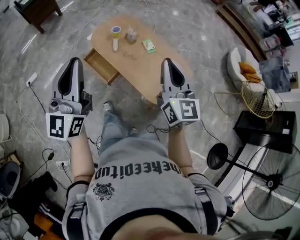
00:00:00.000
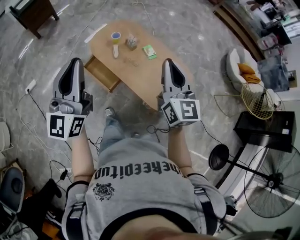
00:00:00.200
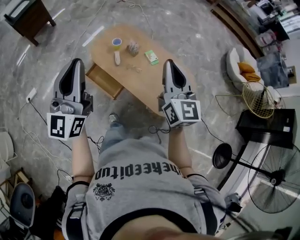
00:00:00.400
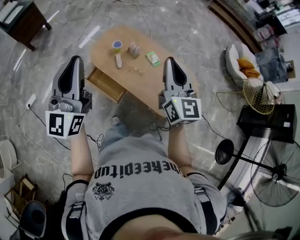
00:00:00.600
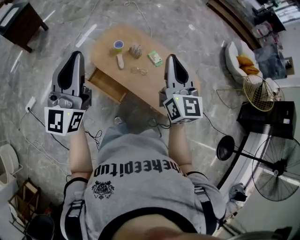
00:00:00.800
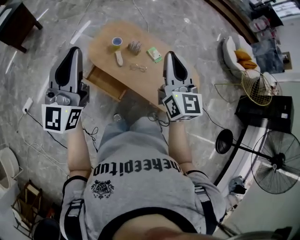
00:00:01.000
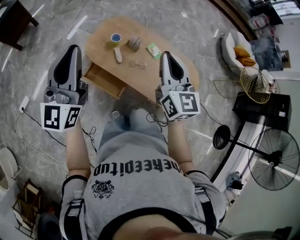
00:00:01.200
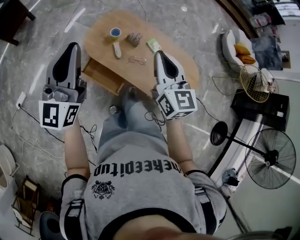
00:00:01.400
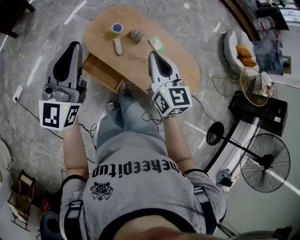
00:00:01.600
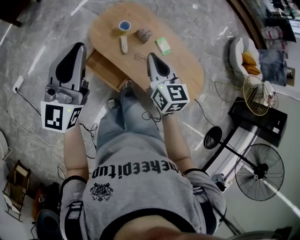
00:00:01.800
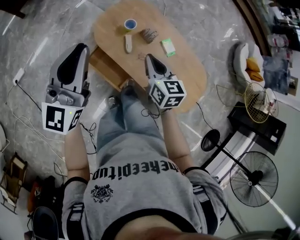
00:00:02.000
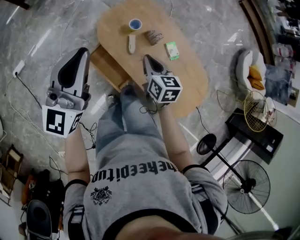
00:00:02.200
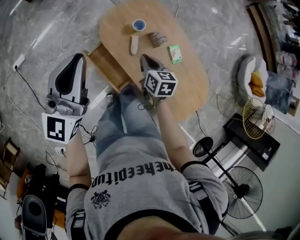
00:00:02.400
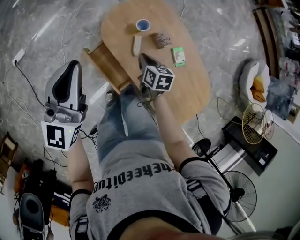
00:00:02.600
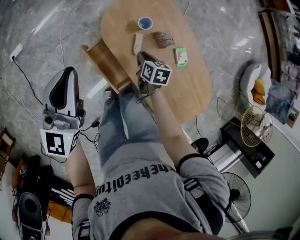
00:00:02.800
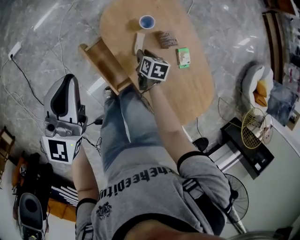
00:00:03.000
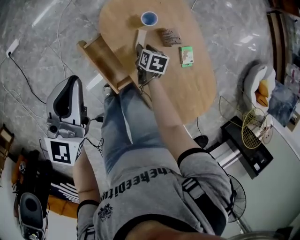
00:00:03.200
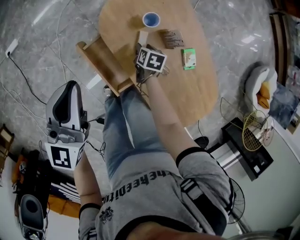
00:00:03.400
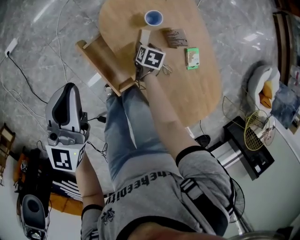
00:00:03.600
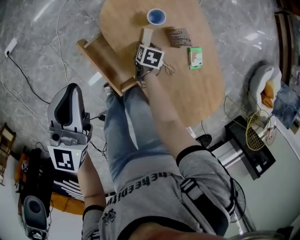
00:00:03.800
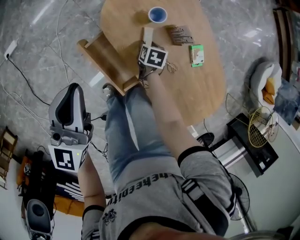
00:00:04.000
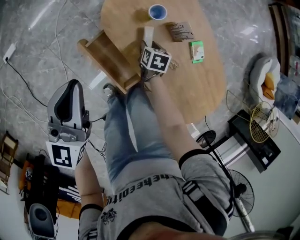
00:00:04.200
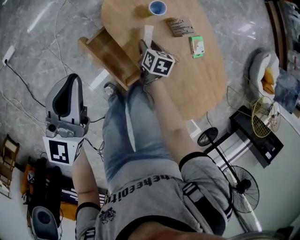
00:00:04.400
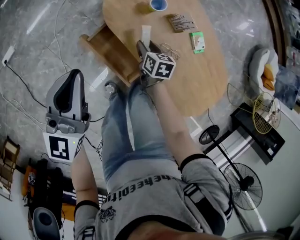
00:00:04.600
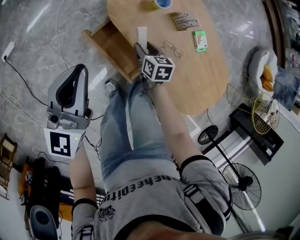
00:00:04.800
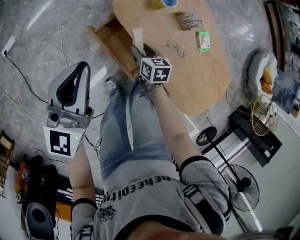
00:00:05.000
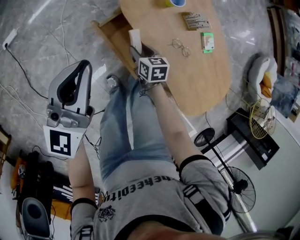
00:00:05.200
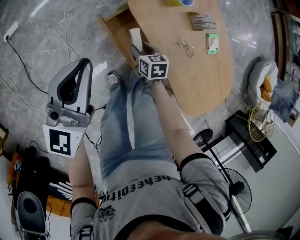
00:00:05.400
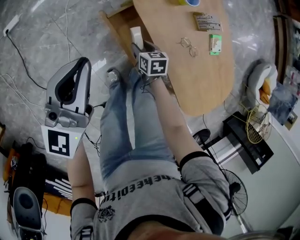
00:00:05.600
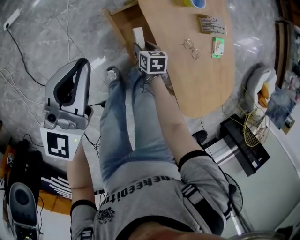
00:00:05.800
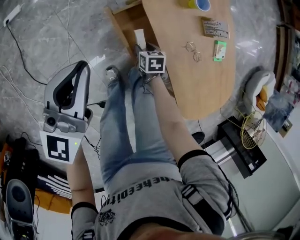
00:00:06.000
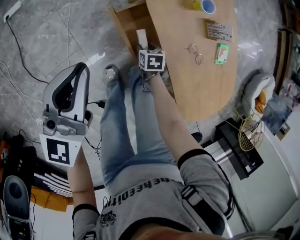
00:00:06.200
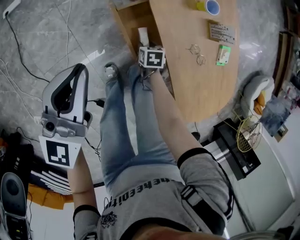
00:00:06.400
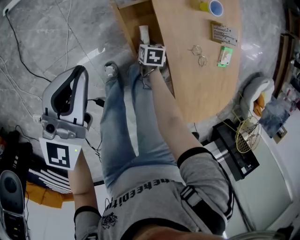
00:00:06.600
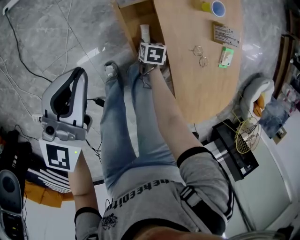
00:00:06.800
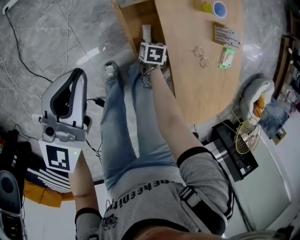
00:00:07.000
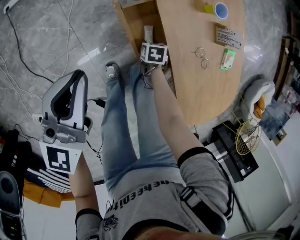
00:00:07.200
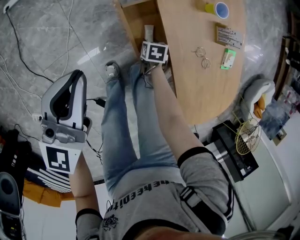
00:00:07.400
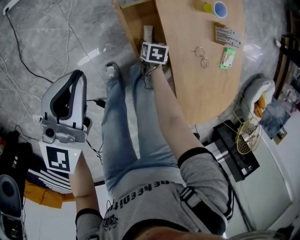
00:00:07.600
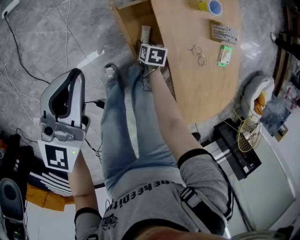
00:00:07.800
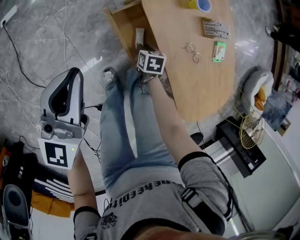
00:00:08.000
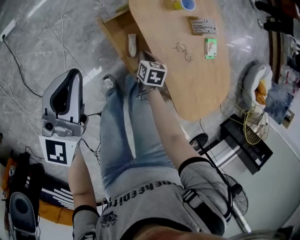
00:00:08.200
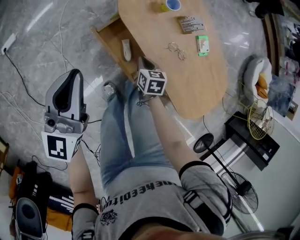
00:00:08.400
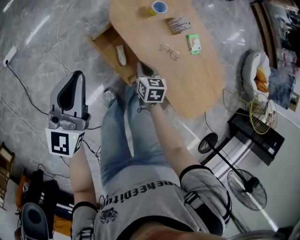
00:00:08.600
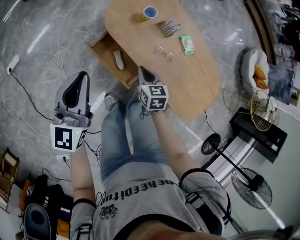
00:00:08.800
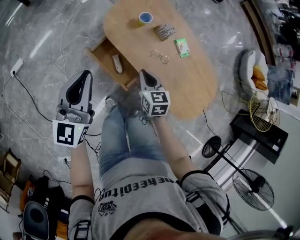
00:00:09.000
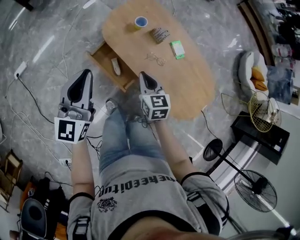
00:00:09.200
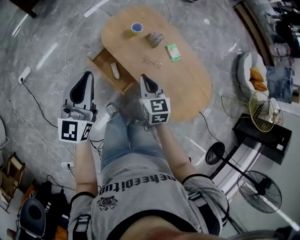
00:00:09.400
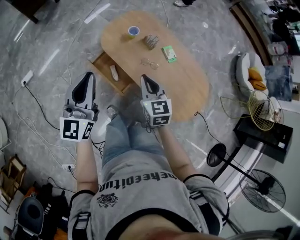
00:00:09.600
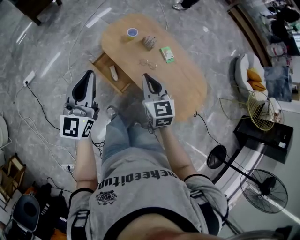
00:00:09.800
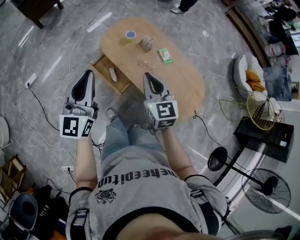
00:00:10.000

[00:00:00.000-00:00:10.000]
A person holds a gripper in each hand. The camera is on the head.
00:00:00.000 to 00:00:01.400: The two grippers go approximately 30 cm forward and to the left.
00:00:01.400 to 00:00:02.800: The right gripper goes about 40 cm downward and forward, and tilts its fingers about 40 degrees downward. The left gripper shifts some 20 cm downward and forward, and turns by about 20 degrees.
00:00:02.800 to 00:00:04.200: The two grippers go some 15 cm downward. The right gripper opens its fingers.
00:00:04.200 to 00:00:05.800: The grippers both shift to the left and backward by some 15 cm. The right gripper rotates approximately 20 degrees.
00:00:05.800 to 00:00:07.200: The left gripper changes place by about 5 cm. The right gripper moves downward, about 10 cm.
00:00:07.200 to 00:00:08.600: The left gripper is displaced upward by some 10 cm. The right gripper travels upward by some 25 cm, swivels approximately 30 degrees, and closes its fingers.
00:00:08.600 to 00:00:10.000: The left gripper heads upward, to the right and backward, covering roughly 25 cm; the right gripper moves upward, roughly 35 cm, and tips its fingers upward by some 30 degrees.

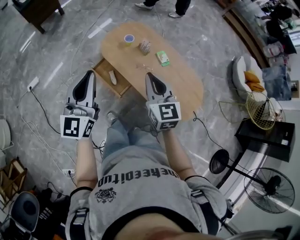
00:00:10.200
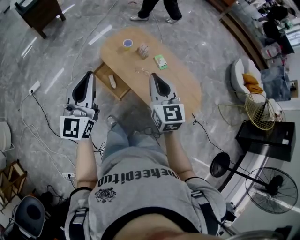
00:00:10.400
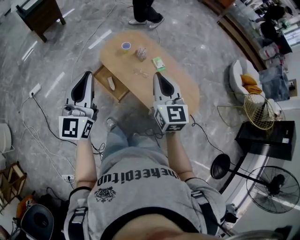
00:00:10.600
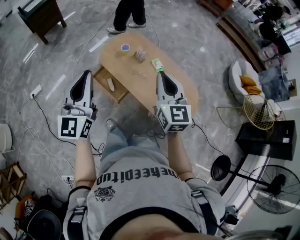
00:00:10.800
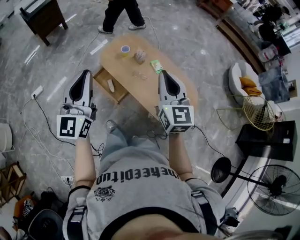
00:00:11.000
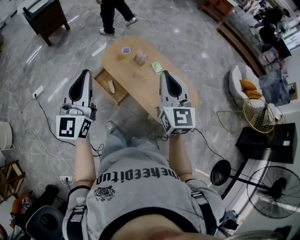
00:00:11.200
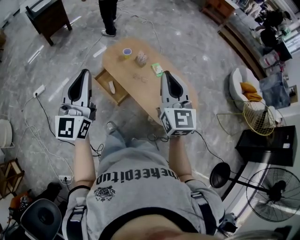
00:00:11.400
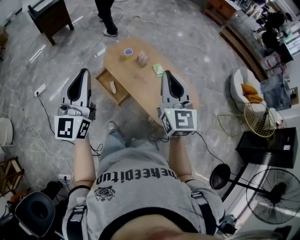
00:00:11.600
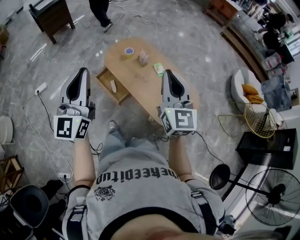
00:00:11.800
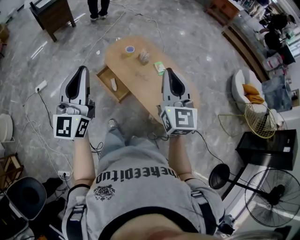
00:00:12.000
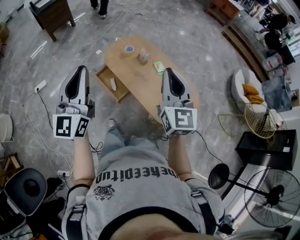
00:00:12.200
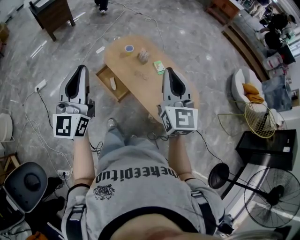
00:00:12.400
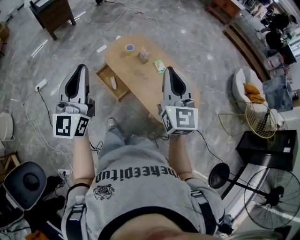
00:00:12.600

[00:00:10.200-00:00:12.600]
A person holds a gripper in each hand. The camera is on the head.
00:00:10.200 to 00:00:11.400: The left gripper heads upward and backward, covering approximately 15 cm; the right gripper moves upward, to the right and backward, about 20 cm.
00:00:11.400 to 00:00:12.600: The grippers make only small movements.

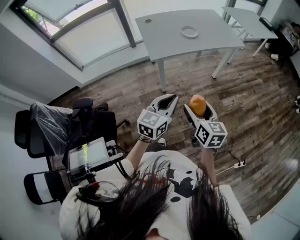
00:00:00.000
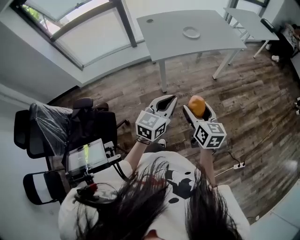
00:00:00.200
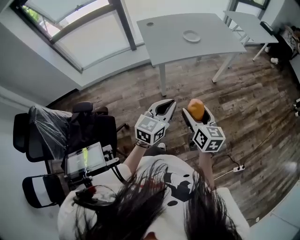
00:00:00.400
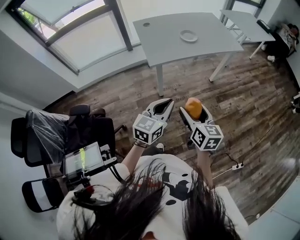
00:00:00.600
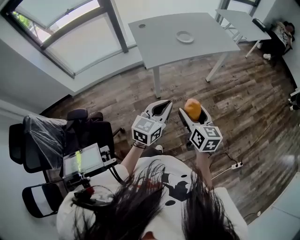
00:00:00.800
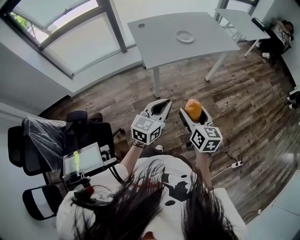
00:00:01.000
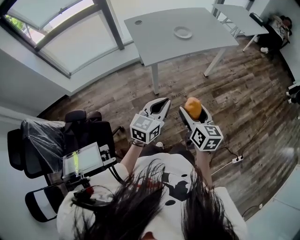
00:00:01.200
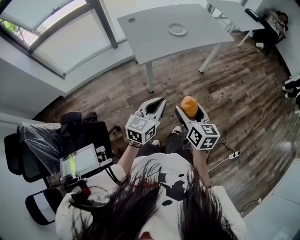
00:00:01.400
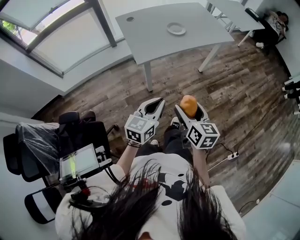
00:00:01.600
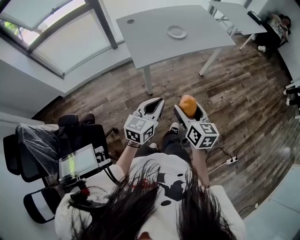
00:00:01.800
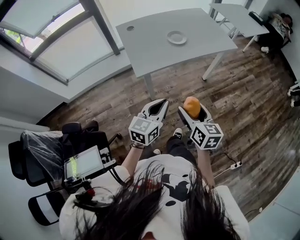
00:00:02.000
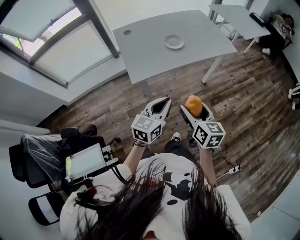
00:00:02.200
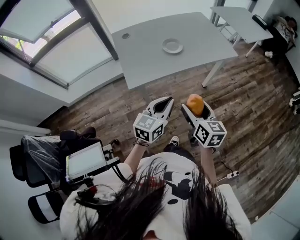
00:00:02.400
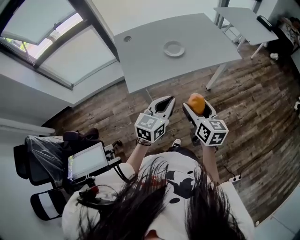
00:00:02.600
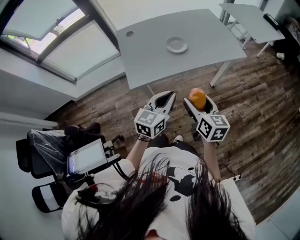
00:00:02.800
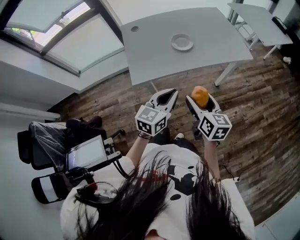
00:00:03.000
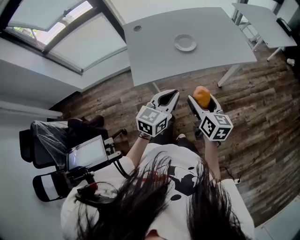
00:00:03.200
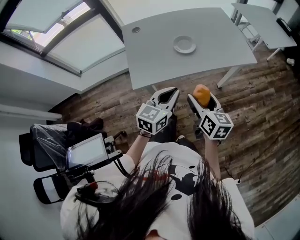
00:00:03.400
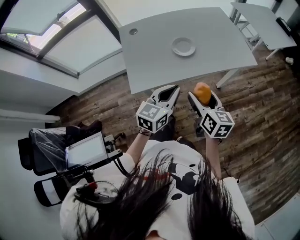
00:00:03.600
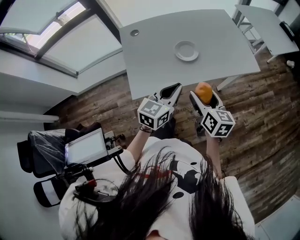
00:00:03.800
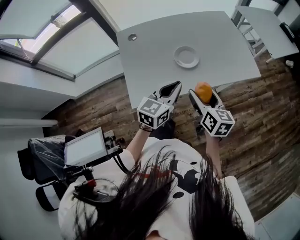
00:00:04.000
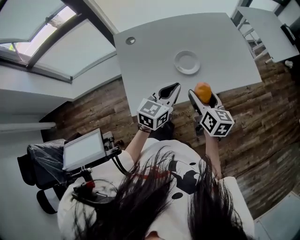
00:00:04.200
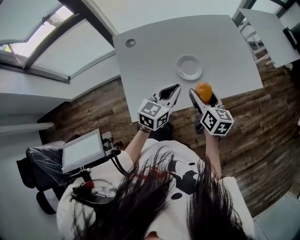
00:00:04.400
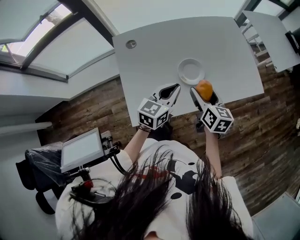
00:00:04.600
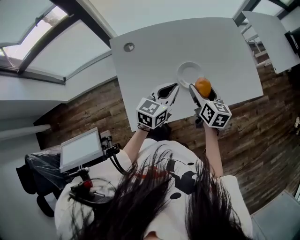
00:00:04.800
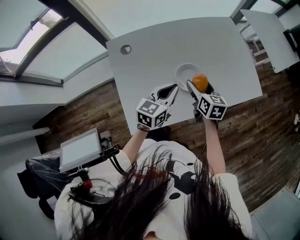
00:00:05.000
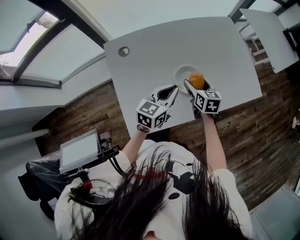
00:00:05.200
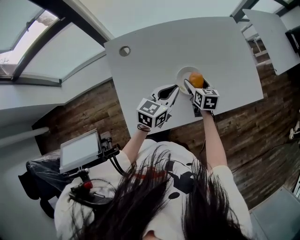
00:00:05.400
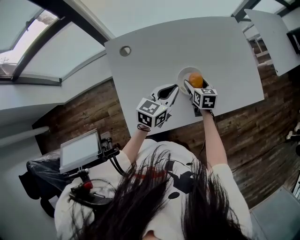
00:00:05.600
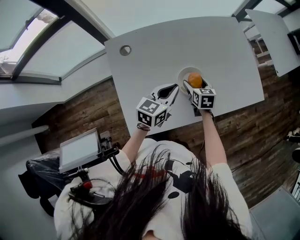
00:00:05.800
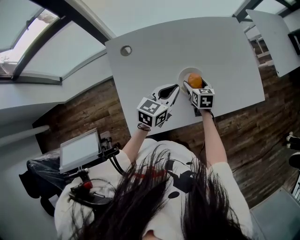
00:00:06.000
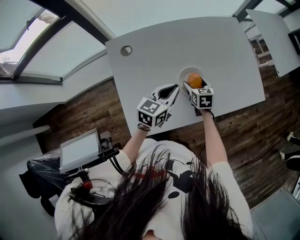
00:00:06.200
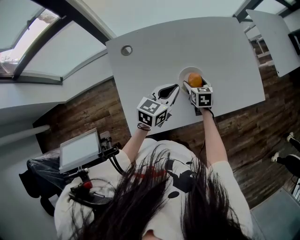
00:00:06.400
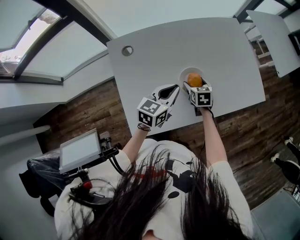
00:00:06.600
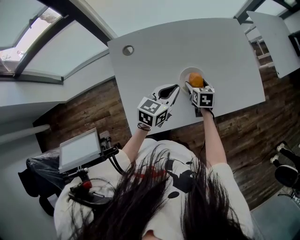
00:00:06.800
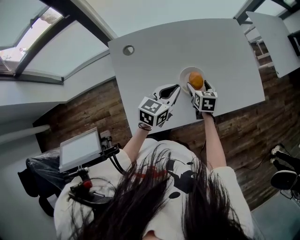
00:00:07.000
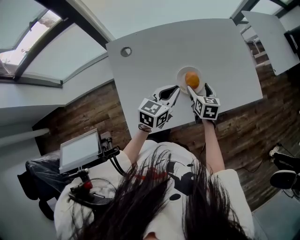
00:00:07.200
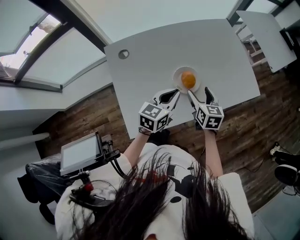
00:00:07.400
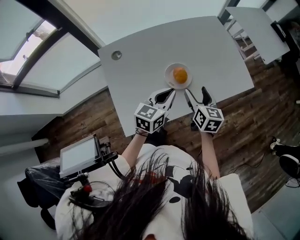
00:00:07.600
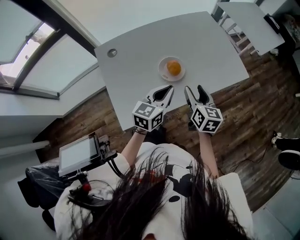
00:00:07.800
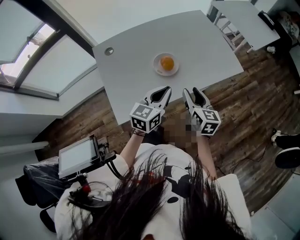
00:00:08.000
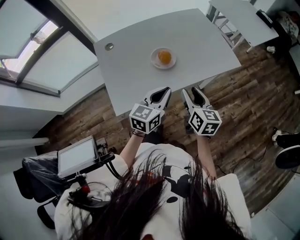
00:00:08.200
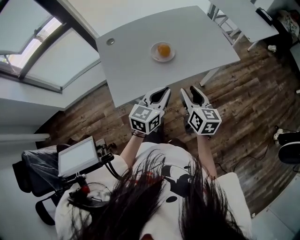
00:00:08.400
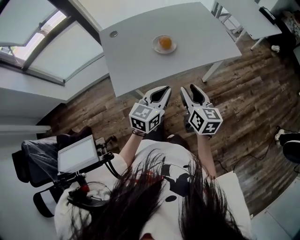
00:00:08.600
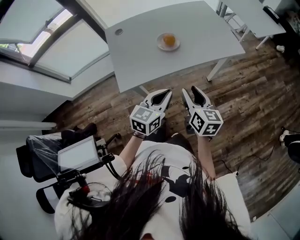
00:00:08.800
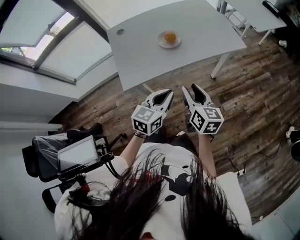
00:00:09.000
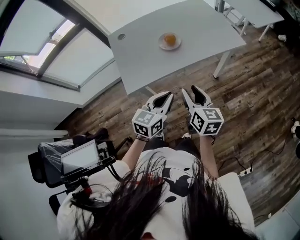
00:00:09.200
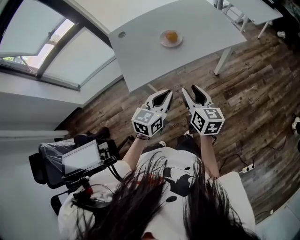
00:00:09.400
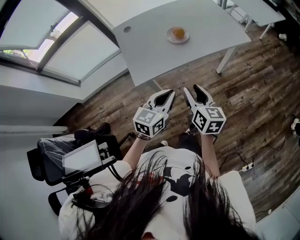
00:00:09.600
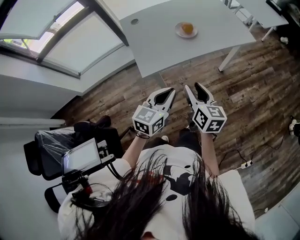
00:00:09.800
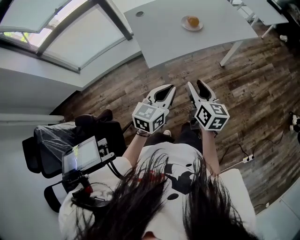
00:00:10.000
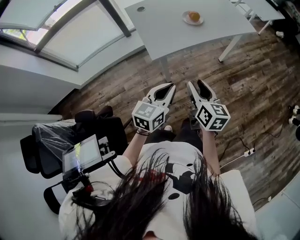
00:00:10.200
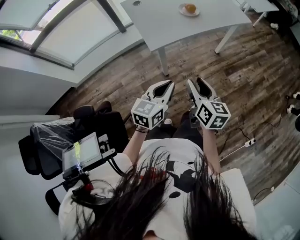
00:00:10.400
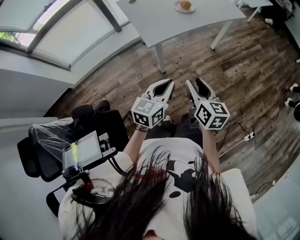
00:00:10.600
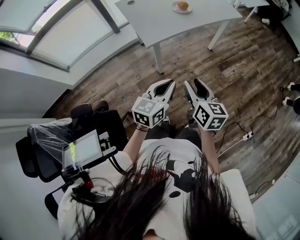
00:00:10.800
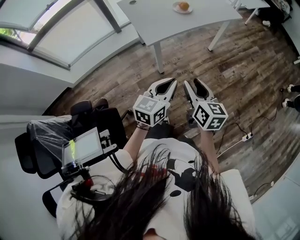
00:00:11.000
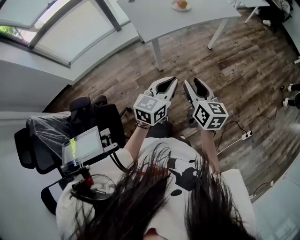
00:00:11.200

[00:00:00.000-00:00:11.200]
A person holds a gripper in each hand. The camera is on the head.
00:00:00.000 to 00:00:01.600: The left gripper ends up about 5 cm from where it was.
00:00:01.600 to 00:00:03.200: The right gripper moves forward, about 25 cm; the left gripper is displaced forward and to the right by approximately 30 cm.
00:00:03.200 to 00:00:04.800: Both grippers move forward, roughly 30 cm.
00:00:04.800 to 00:00:06.400: The right gripper moves downward and forward, approximately 15 cm, and swivels roughly 30 degrees, while the left gripper shifts roughly 5 cm forward.
00:00:06.400 to 00:00:08.000: The left gripper shifts roughly 15 cm backward, to the right and upward. The right gripper goes roughly 30 cm backward, upward and to the right, changes its angle by some 30 degrees, and closes.
00:00:08.000 to 00:00:09.600: The two grippers go some 25 cm backward.
00:00:09.600 to 00:00:11.200: Both grippers travel together backward, about 25 cm.
